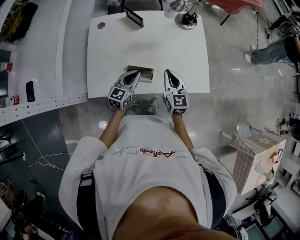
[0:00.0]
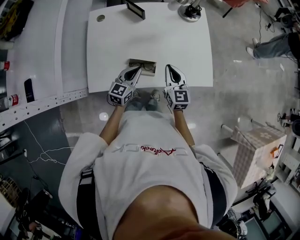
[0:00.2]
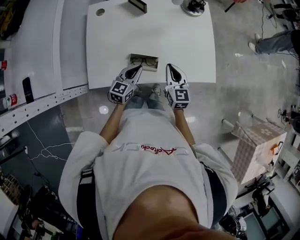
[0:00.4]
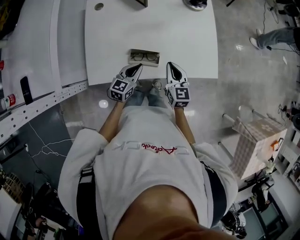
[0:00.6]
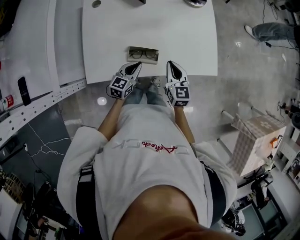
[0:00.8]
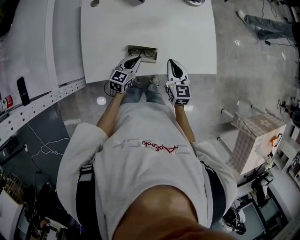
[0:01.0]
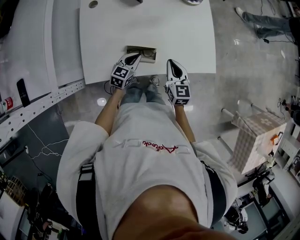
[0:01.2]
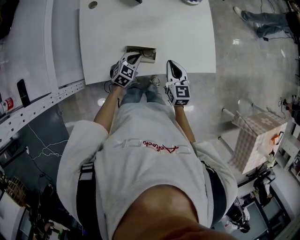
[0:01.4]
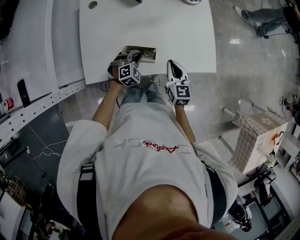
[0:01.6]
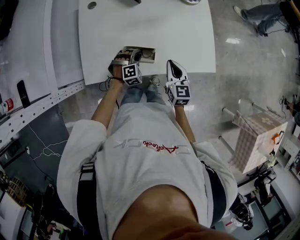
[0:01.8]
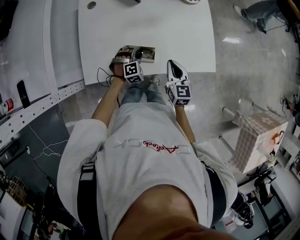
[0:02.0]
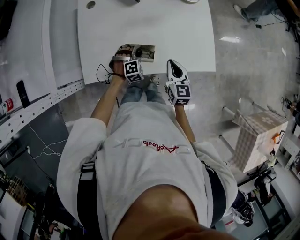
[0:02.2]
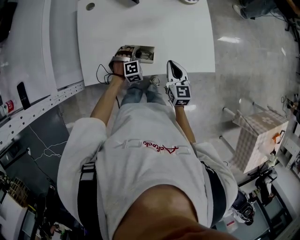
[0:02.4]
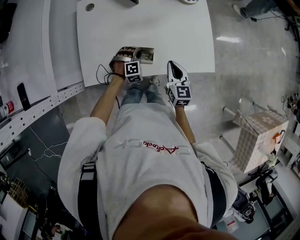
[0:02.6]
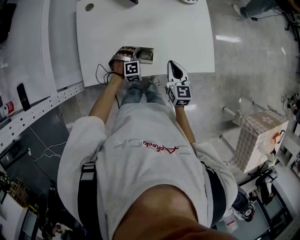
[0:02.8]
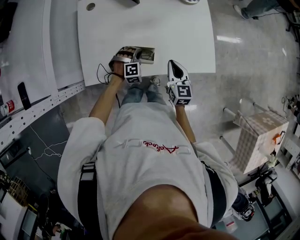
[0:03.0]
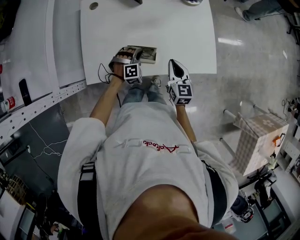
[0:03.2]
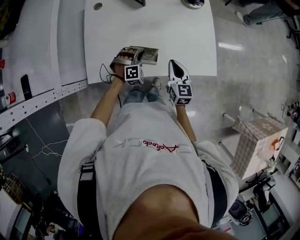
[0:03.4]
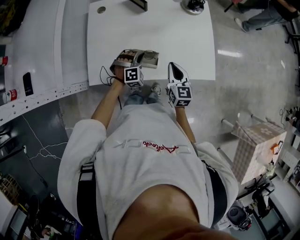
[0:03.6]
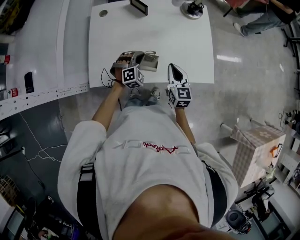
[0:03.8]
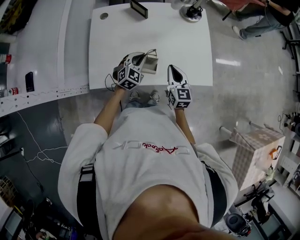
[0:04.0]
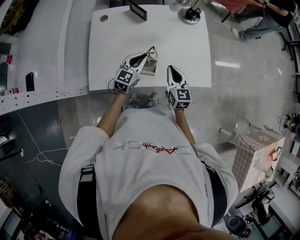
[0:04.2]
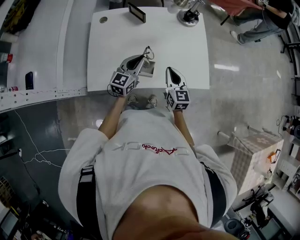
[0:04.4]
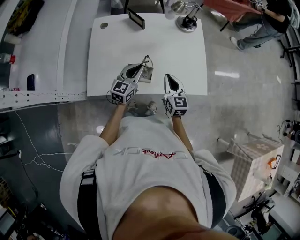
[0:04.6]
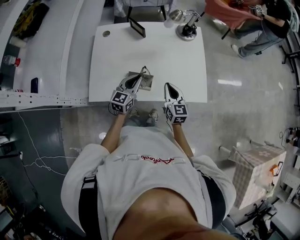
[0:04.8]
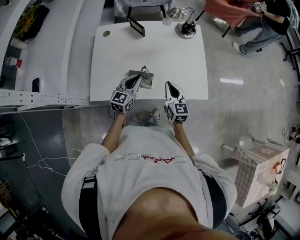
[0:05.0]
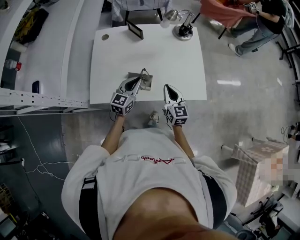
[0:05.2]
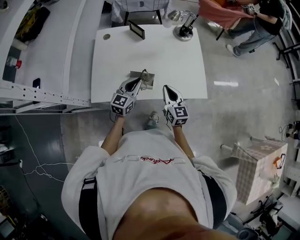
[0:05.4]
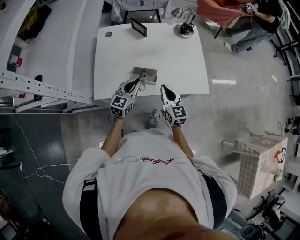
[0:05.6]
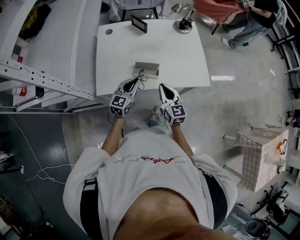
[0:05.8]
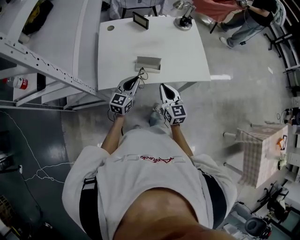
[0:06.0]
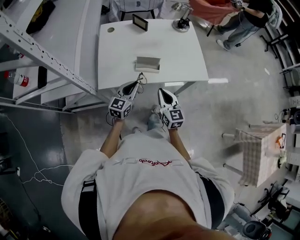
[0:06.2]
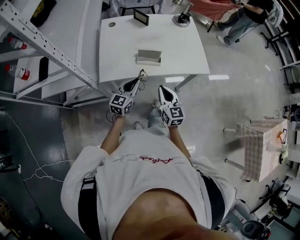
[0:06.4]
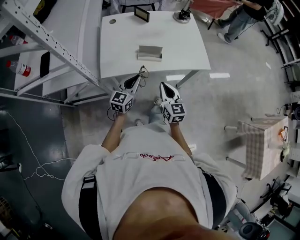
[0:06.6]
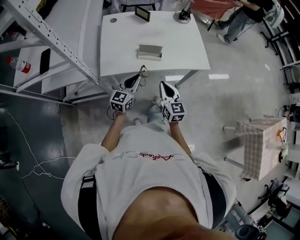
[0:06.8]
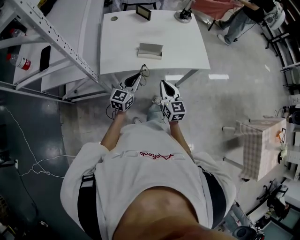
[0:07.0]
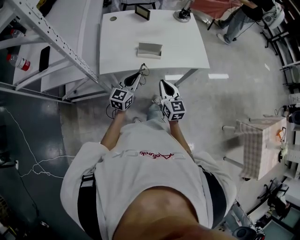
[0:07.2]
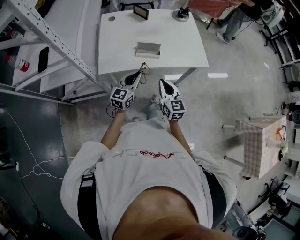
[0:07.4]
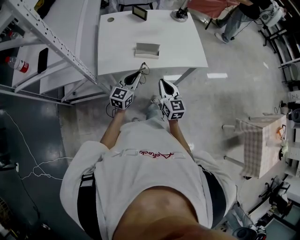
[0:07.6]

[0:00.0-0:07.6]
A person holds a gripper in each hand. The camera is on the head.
0.0 to 1.6 s: The right gripper shifts approximately 5 cm downward, while the left gripper heads downward, covering some 10 cm, and twists approximately 50 degrees clockwise, seen from behind.
1.6 to 3.0 s: The left gripper swivels about 20 degrees, and opens and closes again.
3.0 to 4.6 s: The left gripper travels upward by approximately 15 cm, and twists about 70 degrees counterclockwise, seen from behind.
4.6 to 6.0 s: The grippers both shift backward and to the left by roughly 15 cm.
6.0 to 7.6 s: Both grippers move backward, roughly 10 cm.

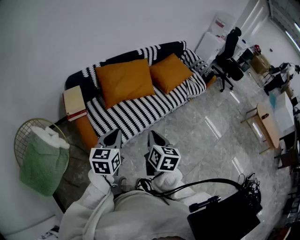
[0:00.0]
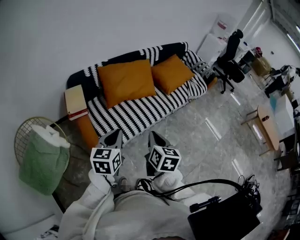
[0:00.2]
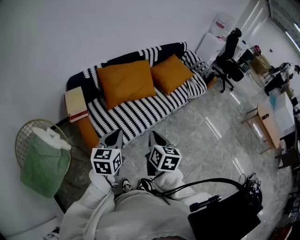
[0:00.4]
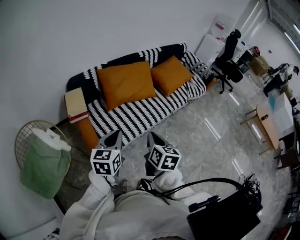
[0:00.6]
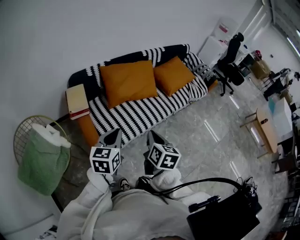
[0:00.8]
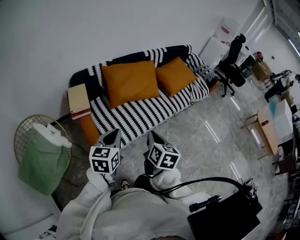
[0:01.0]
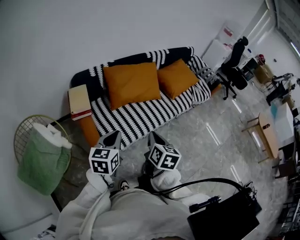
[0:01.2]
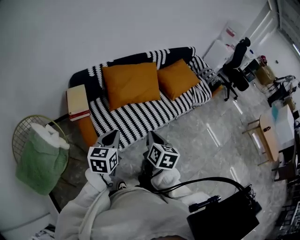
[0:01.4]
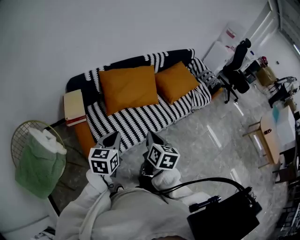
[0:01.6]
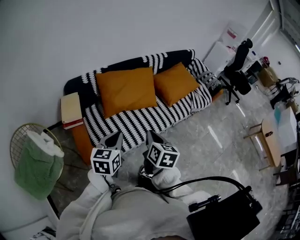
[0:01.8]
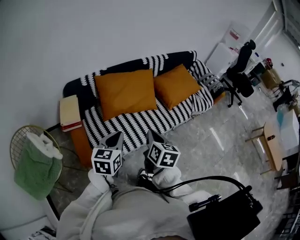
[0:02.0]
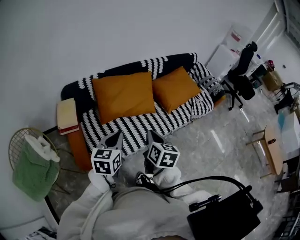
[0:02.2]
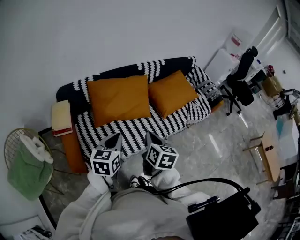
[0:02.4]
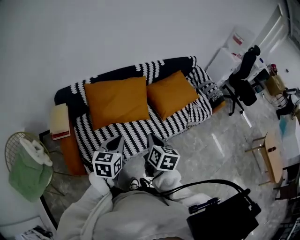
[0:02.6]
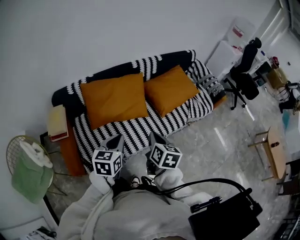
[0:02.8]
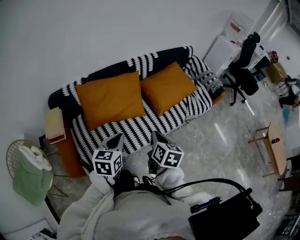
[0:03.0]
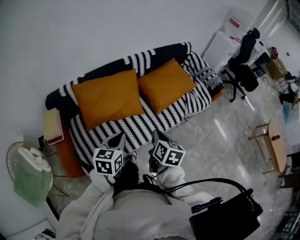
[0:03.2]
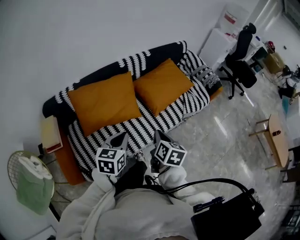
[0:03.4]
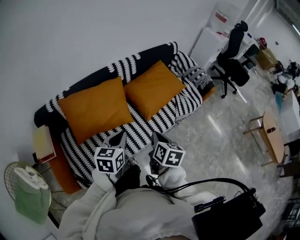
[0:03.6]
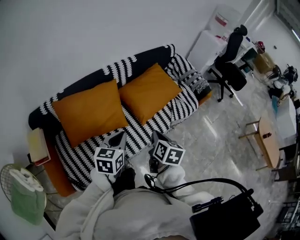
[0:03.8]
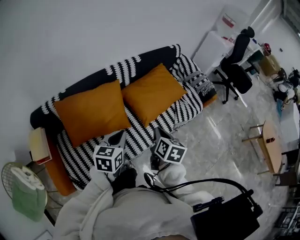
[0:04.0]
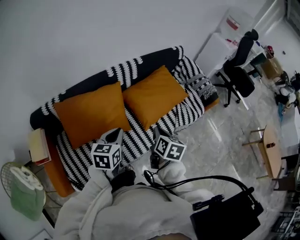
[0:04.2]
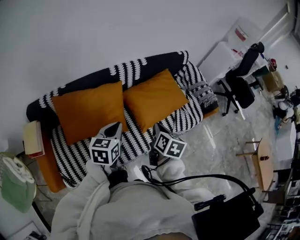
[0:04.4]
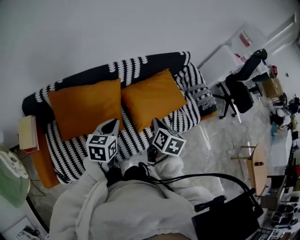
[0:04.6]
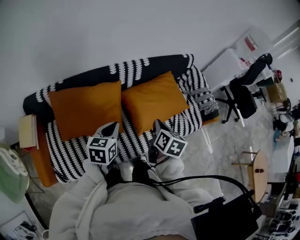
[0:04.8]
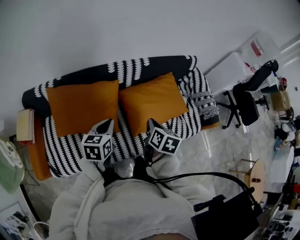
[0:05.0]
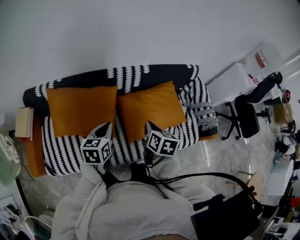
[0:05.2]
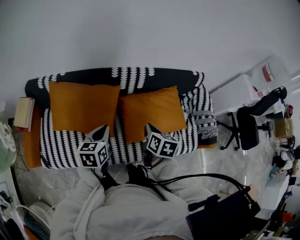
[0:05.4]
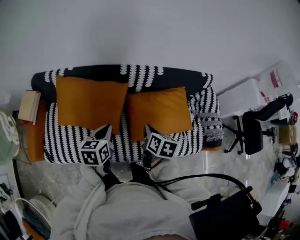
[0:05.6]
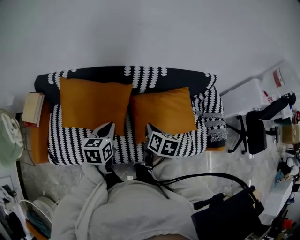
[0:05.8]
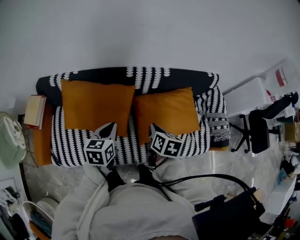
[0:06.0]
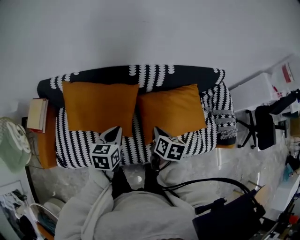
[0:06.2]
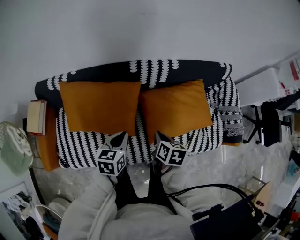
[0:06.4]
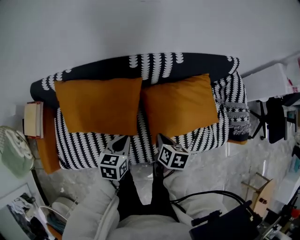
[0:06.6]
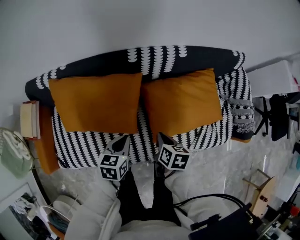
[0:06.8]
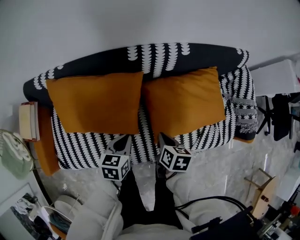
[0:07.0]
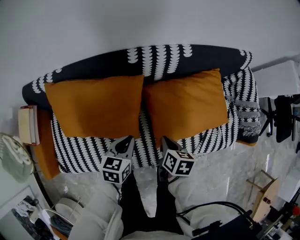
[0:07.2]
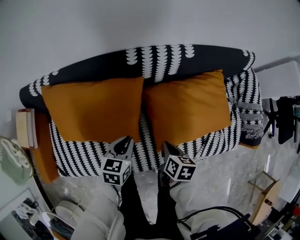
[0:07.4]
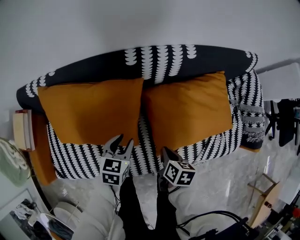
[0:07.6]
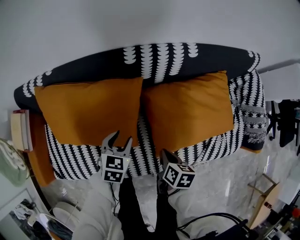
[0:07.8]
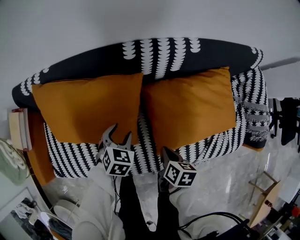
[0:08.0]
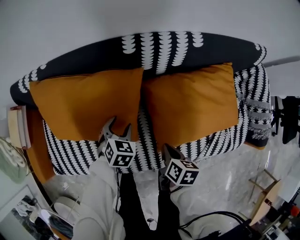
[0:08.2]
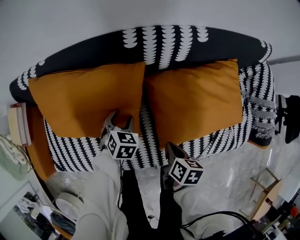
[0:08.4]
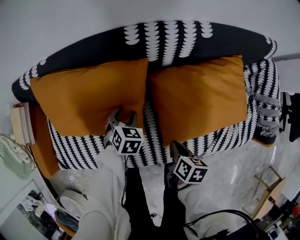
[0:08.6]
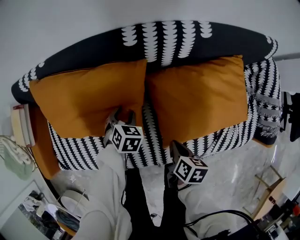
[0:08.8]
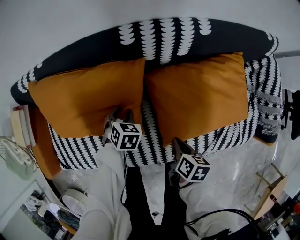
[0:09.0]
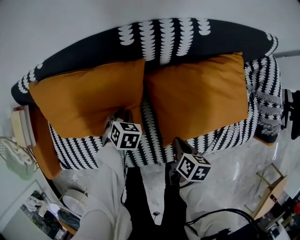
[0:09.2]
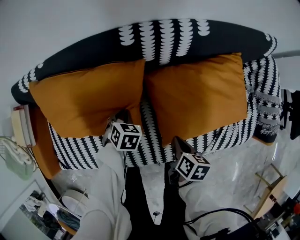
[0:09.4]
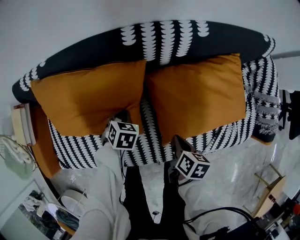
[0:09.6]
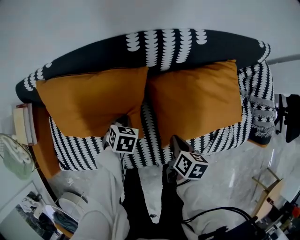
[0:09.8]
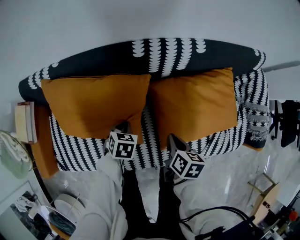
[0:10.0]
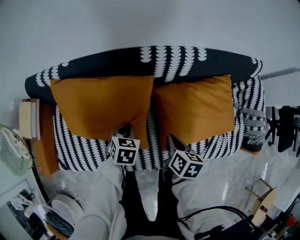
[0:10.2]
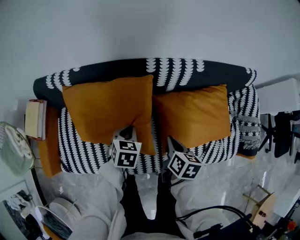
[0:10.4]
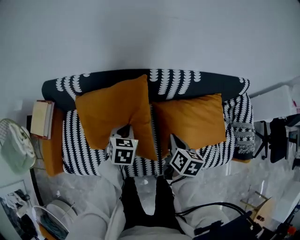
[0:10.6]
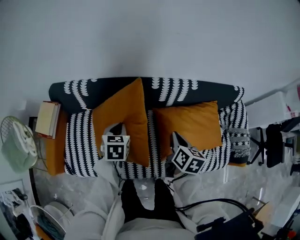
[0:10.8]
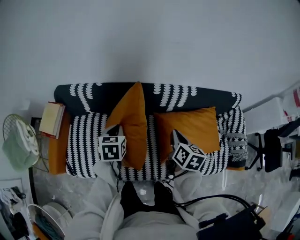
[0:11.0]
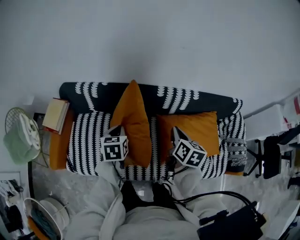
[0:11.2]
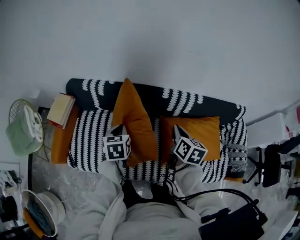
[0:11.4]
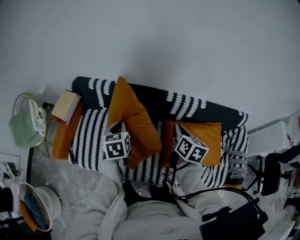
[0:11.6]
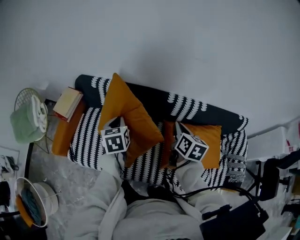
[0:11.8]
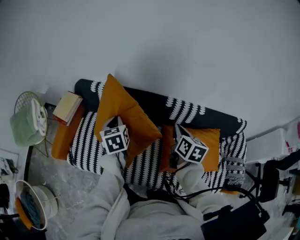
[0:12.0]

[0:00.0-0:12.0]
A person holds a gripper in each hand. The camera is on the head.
0.0 to 1.6 s: The two grippers go roughly 10 cm forward.
1.6 to 3.0 s: The right gripper moves forward and to the right, roughly 30 cm. Meanwhile the left gripper shifts roughly 25 cm to the right and forward.
3.0 to 4.4 s: The two grippers go about 25 cm forward.
4.4 to 6.0 s: The right gripper shifts by about 15 cm, and rotates roughly 30 degrees; the left gripper changes place by some 10 cm, and changes its angle by some 30 degrees.
6.0 to 7.6 s: The grippers both shift downward by about 25 cm. The left gripper opens its fingers.
7.6 to 9.0 s: The left gripper shifts some 15 cm downward and forward, and changes its angle by about 30 degrees.
9.0 to 10.4 s: The right gripper heads upward and forward, covering some 15 cm, while the left gripper goes about 15 cm upward, and closes up.
10.4 to 12.0 s: The left gripper heads upward and to the left, covering roughly 30 cm, and turns by roughly 50 degrees. Meanwhile the right gripper heads upward, covering about 20 cm, and rotates roughly 30 degrees.

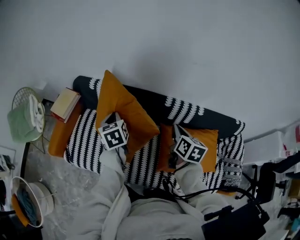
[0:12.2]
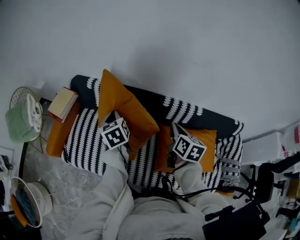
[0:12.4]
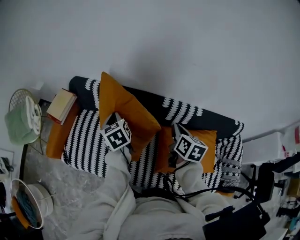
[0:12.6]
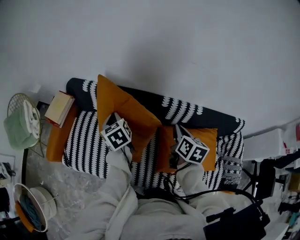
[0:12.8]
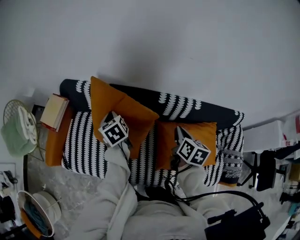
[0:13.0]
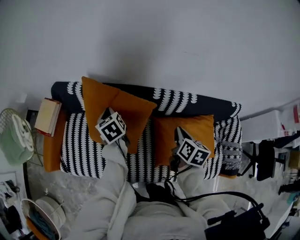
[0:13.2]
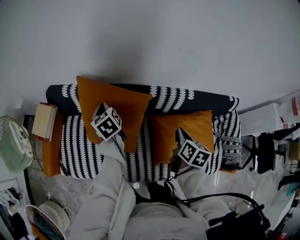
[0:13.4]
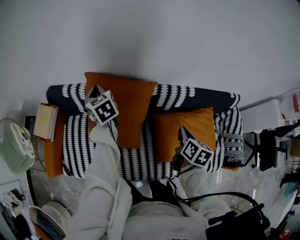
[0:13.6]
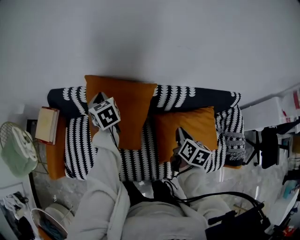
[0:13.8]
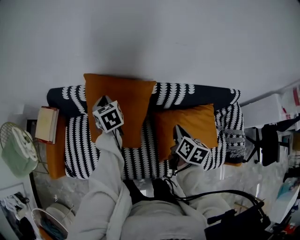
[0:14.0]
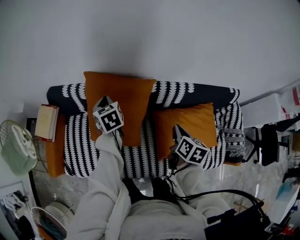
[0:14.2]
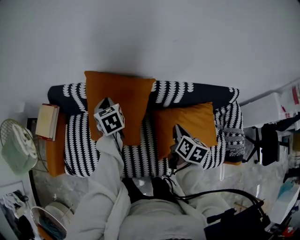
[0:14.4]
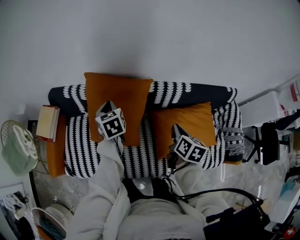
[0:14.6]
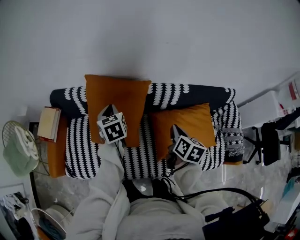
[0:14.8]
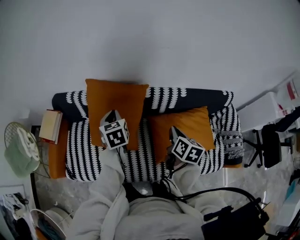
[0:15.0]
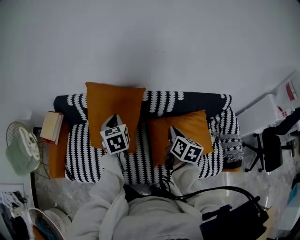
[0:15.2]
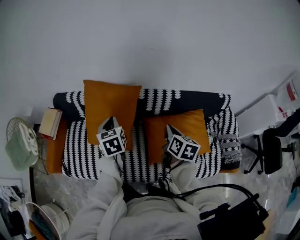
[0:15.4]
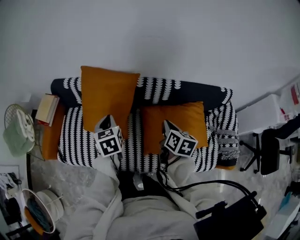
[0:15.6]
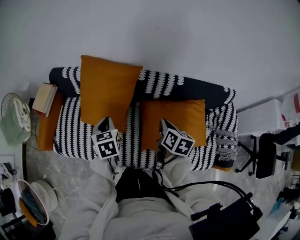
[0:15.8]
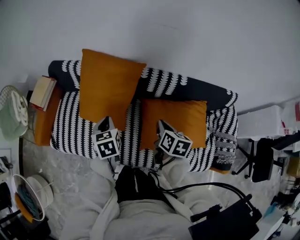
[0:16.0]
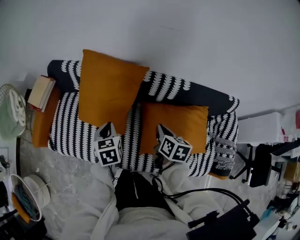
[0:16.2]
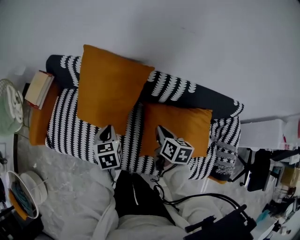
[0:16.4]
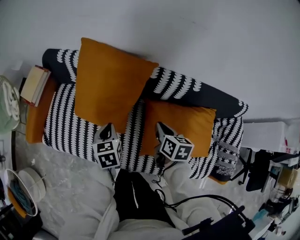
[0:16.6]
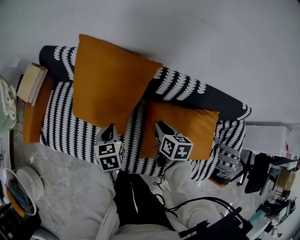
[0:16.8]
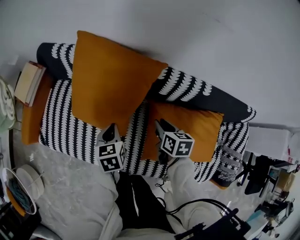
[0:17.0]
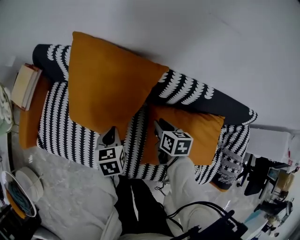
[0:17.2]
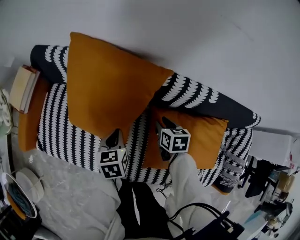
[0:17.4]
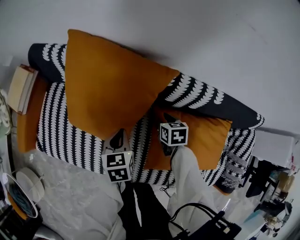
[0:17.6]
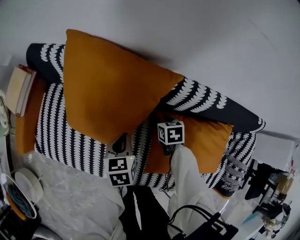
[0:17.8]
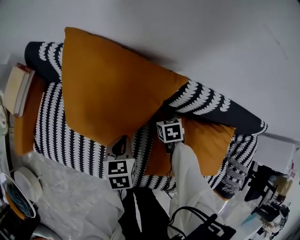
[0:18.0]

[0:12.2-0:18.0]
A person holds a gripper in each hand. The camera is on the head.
12.2 to 13.6 s: The left gripper moves forward, some 20 cm, while the right gripper goes some 10 cm to the right and downward, and rotates approximately 20 degrees.
13.6 to 15.0 s: The right gripper changes place by roughly 5 cm, while the left gripper shifts approximately 15 cm backward and to the right.
15.0 to 16.6 s: The right gripper shifts approximately 15 cm downward, and swivels some 30 degrees, while the left gripper moves downward and backward, roughly 20 cm.
16.6 to 18.0 s: The left gripper moves downward and forward, approximately 10 cm. Meanwhile the right gripper is displaced downward and forward by approximately 25 cm, rotates some 40 degrees, and opens.
